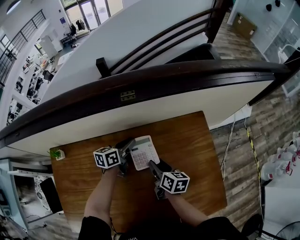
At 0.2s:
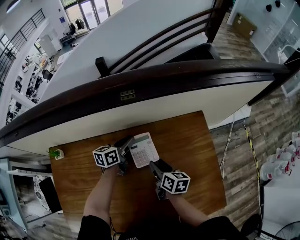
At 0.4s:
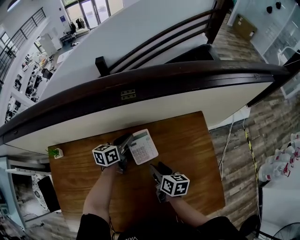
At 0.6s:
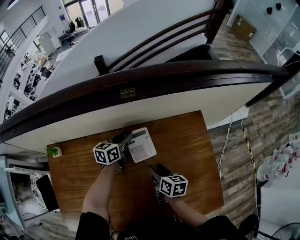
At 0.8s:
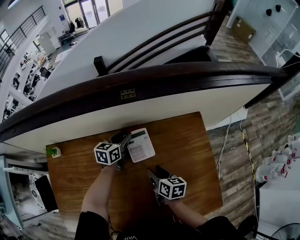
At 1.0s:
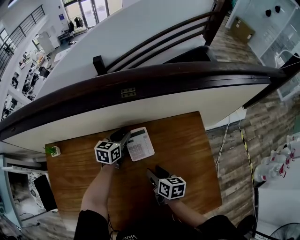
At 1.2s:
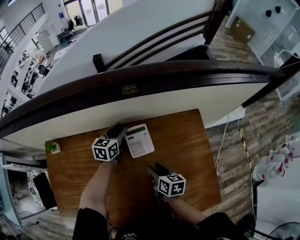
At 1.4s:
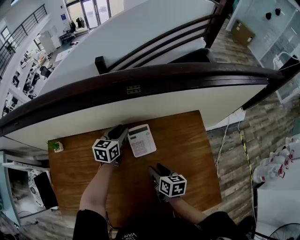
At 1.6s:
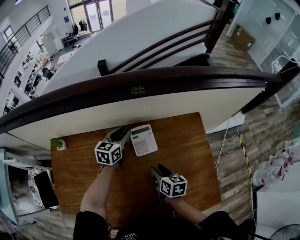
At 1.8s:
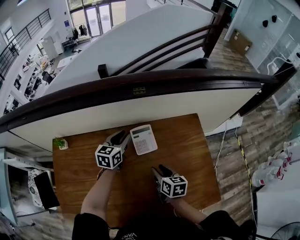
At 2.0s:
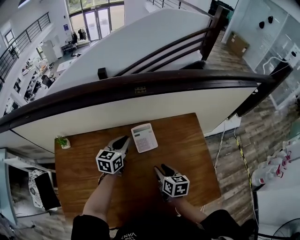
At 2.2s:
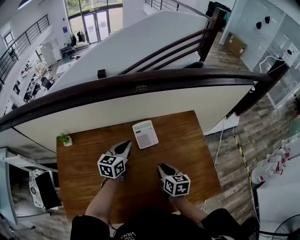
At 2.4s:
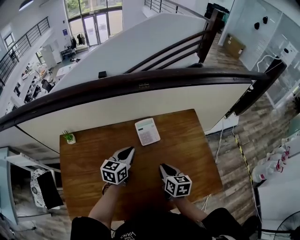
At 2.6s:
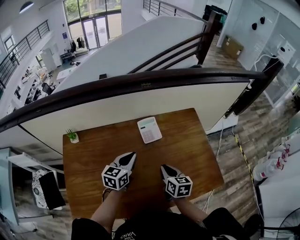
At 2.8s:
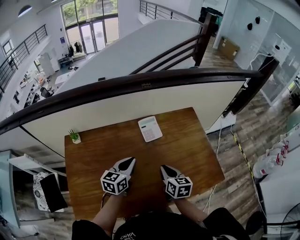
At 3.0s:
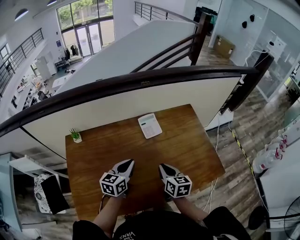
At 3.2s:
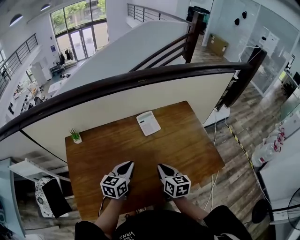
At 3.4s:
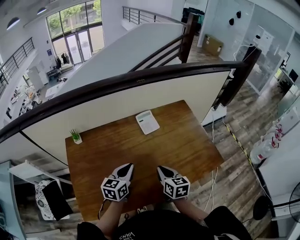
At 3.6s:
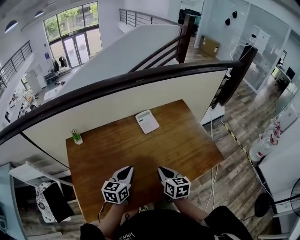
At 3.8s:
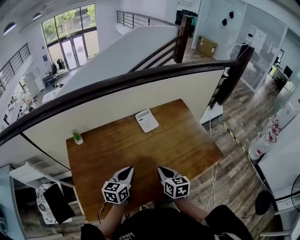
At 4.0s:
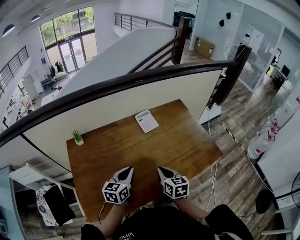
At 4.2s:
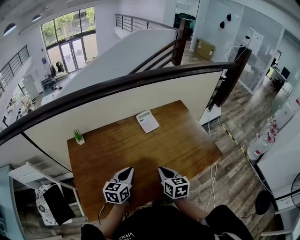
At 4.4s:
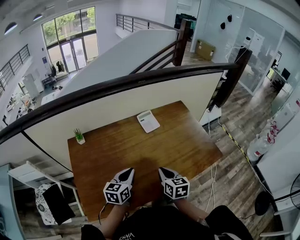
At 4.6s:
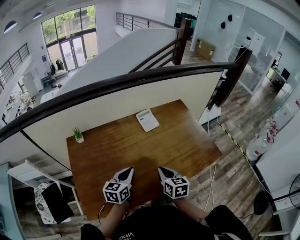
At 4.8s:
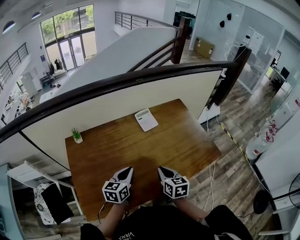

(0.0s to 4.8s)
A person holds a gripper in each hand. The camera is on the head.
0.0s - 1.6s: The left gripper moves upward, approximately 5 cm, and changes its angle by roughly 30 degrees, while the right gripper shifts roughly 5 cm backward.
1.6s - 3.2s: The left gripper heads backward, covering roughly 30 cm, and closes, while the right gripper goes some 20 cm backward and upward, and closes up.
3.2s - 4.8s: Both grippers travel together backward, some 5 cm.

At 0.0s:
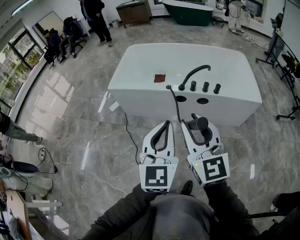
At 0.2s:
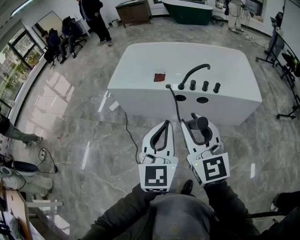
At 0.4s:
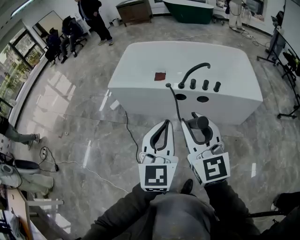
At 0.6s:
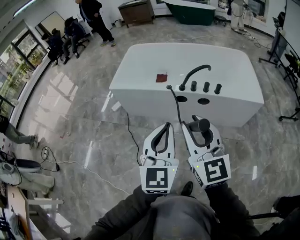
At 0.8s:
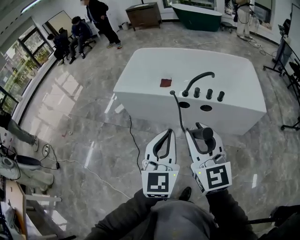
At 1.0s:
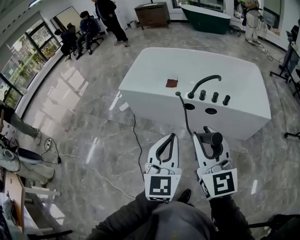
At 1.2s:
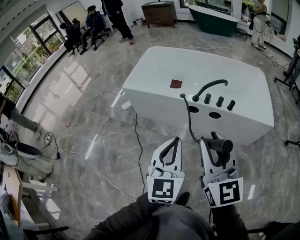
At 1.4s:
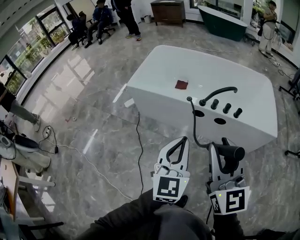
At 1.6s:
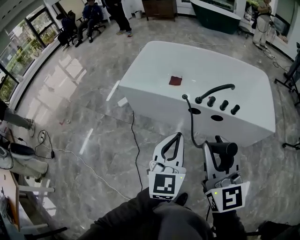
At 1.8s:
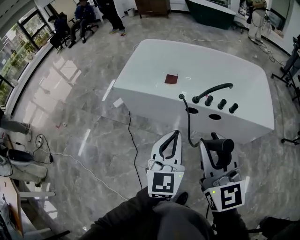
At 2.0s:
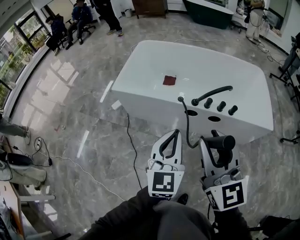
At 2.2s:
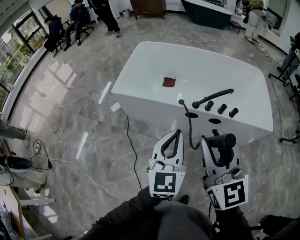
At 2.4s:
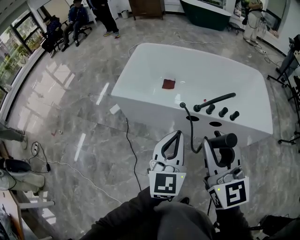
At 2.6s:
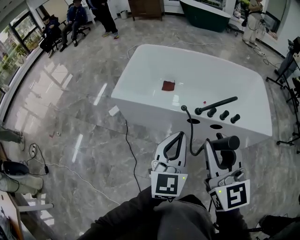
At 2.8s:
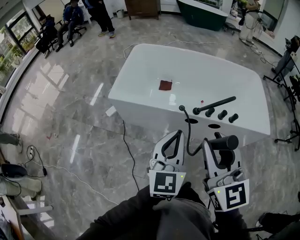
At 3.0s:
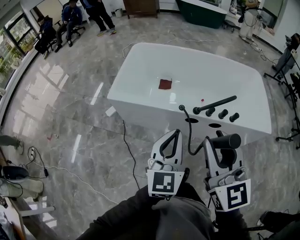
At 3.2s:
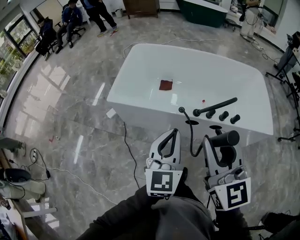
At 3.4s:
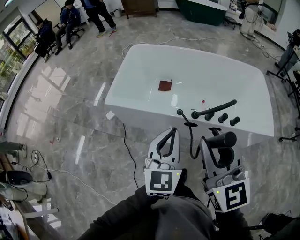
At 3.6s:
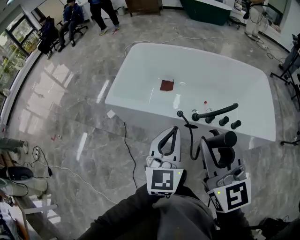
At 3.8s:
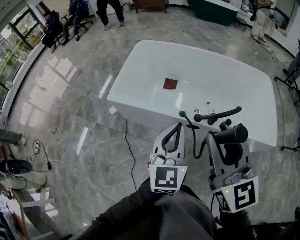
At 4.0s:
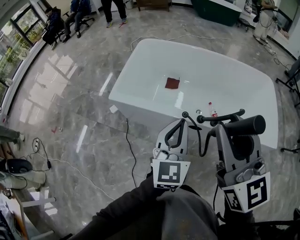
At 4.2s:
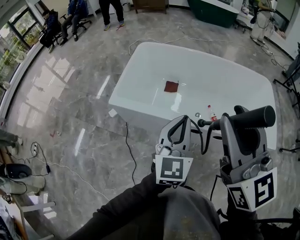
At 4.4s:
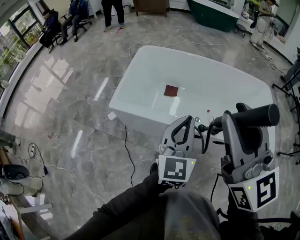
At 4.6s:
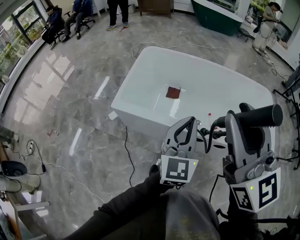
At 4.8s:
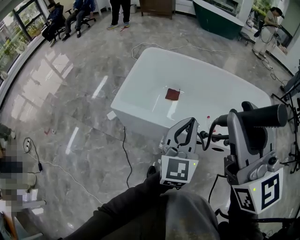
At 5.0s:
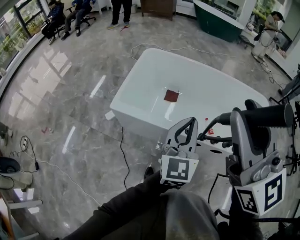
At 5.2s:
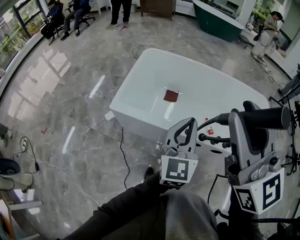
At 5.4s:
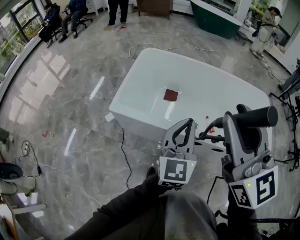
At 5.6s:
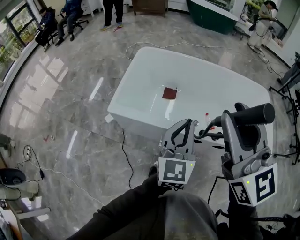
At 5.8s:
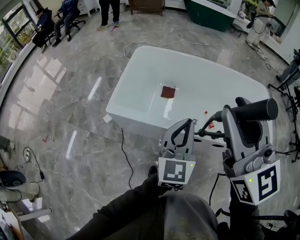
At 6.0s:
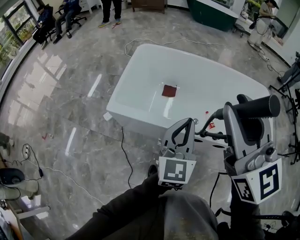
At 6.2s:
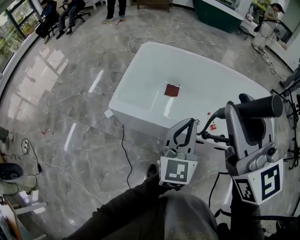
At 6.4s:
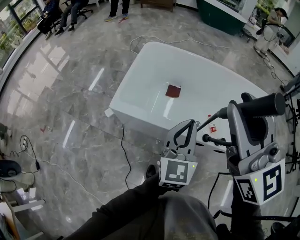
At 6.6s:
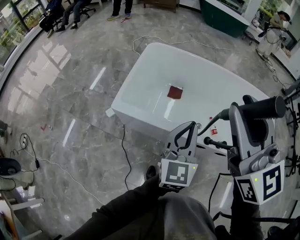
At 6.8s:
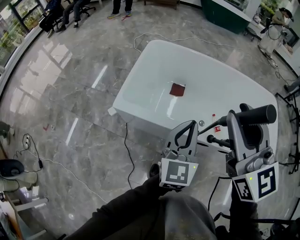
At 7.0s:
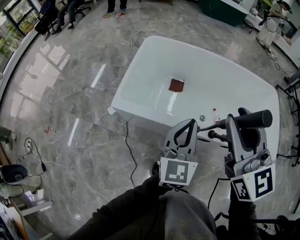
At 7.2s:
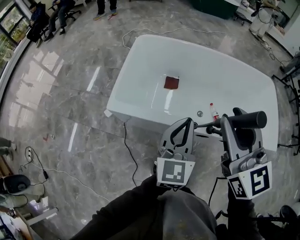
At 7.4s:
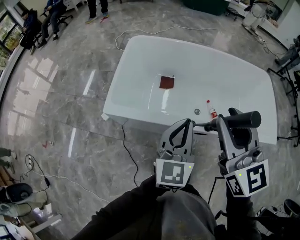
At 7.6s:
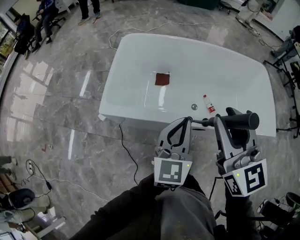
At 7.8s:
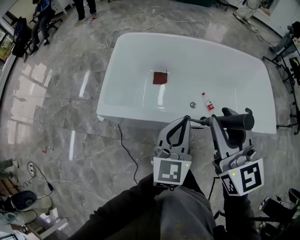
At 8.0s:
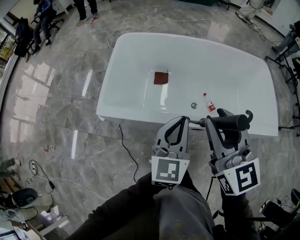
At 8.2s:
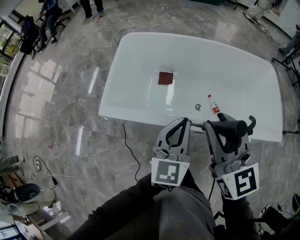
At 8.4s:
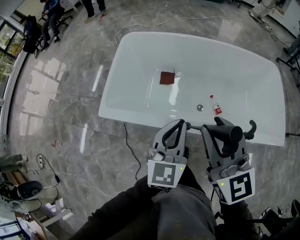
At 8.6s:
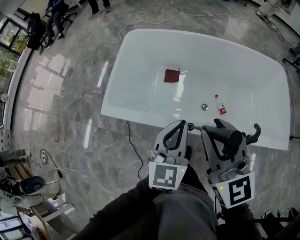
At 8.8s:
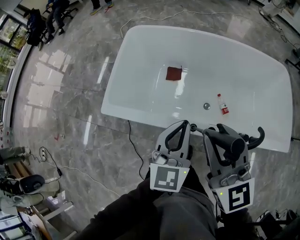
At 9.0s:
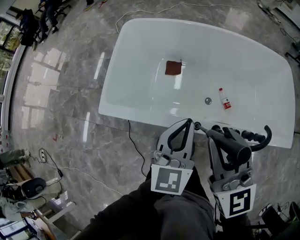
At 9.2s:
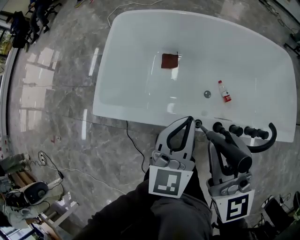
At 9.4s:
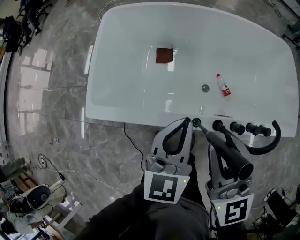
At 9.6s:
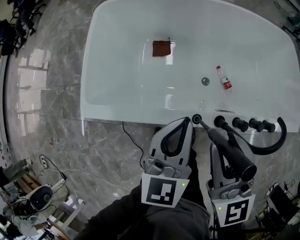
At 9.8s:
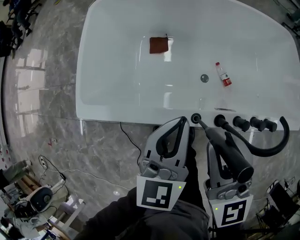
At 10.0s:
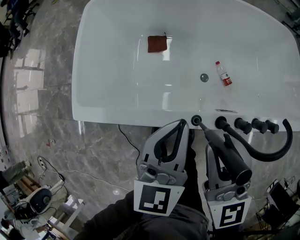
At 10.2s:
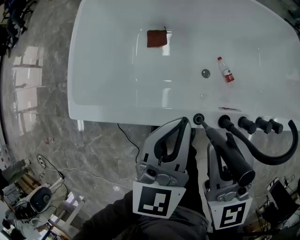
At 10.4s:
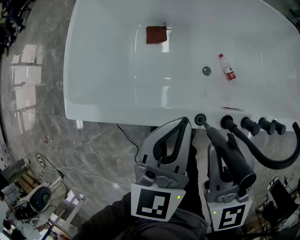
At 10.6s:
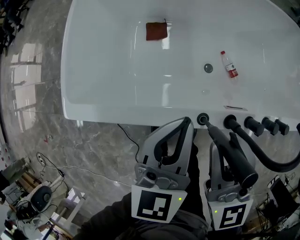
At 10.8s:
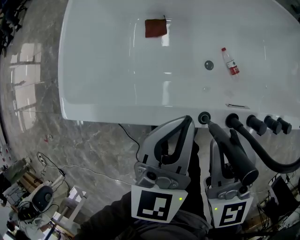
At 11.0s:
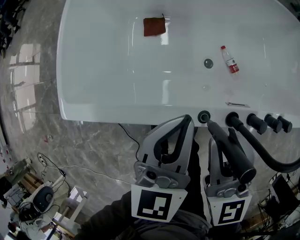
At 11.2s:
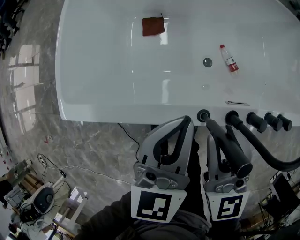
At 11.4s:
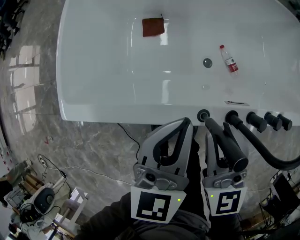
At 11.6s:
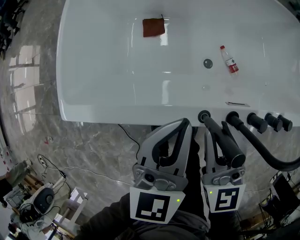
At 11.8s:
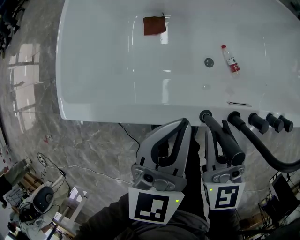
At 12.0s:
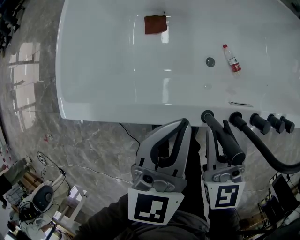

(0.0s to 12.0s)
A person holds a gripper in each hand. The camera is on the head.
0.0s - 1.6s: The left gripper travels forward and downward by about 10 cm, while the right gripper shifts some 5 cm forward.
1.6s - 3.0s: The left gripper shifts some 10 cm forward, while the right gripper travels forward and to the left by approximately 15 cm.
3.0s - 4.4s: The right gripper is displaced forward and upward by roughly 20 cm; the left gripper moves forward, roughly 15 cm.
4.4s - 6.0s: The two grippers go about 5 cm forward.
6.0s - 7.6s: The right gripper travels downward by approximately 10 cm.
7.6s - 9.0s: The right gripper shifts about 10 cm downward and forward. The left gripper goes roughly 10 cm forward and downward.
9.0s - 10.4s: The two grippers go about 15 cm downward.
10.4s - 12.0s: The right gripper heads downward, covering roughly 10 cm.

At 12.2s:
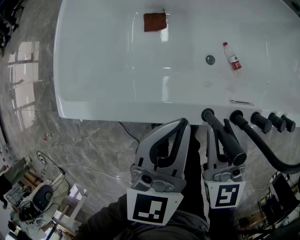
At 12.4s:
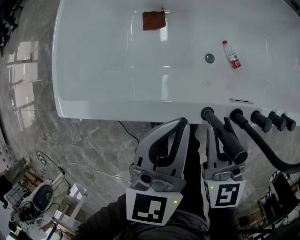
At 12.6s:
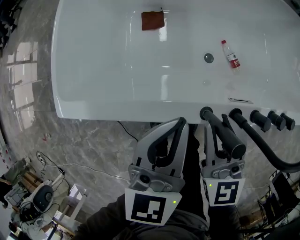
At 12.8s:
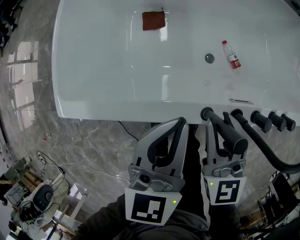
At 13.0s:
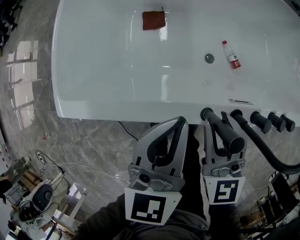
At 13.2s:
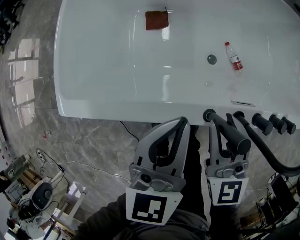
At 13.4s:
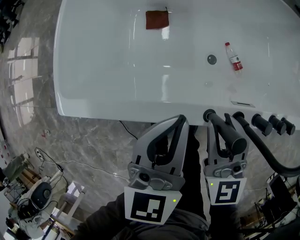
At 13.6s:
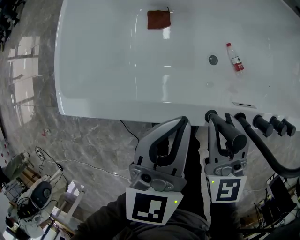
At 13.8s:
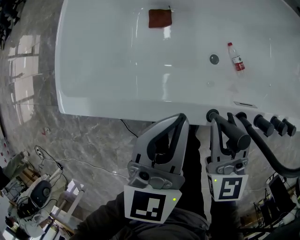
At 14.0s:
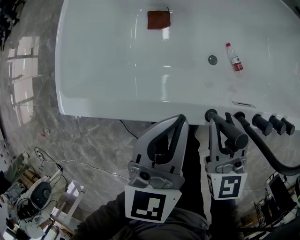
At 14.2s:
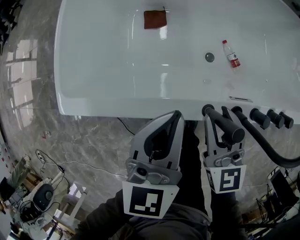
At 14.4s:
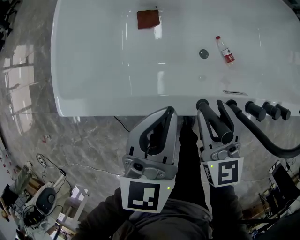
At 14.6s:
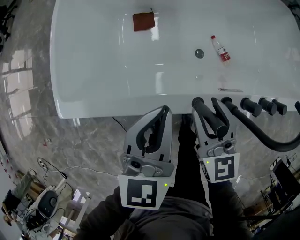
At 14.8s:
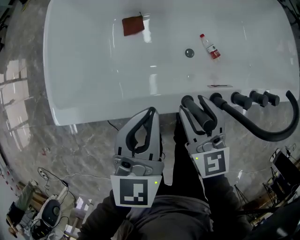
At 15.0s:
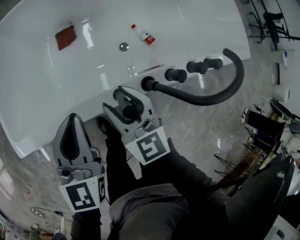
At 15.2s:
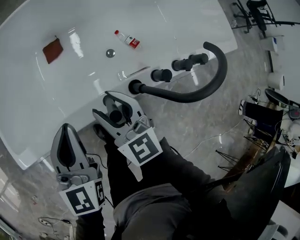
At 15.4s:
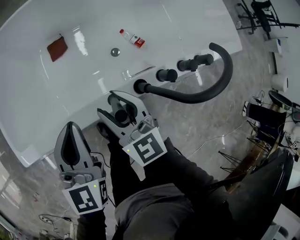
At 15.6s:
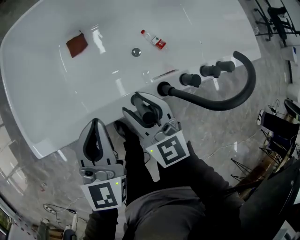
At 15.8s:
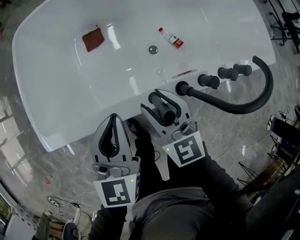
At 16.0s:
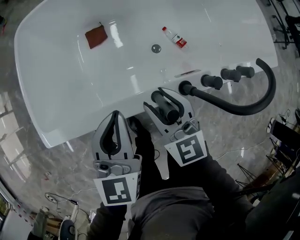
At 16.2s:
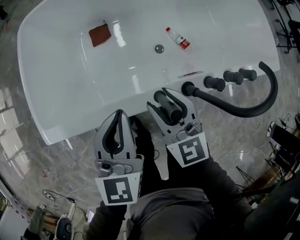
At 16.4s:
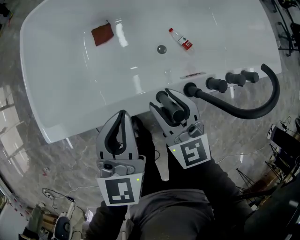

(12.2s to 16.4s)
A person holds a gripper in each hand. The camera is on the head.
12.2s - 16.4s: The grippers move only a little.

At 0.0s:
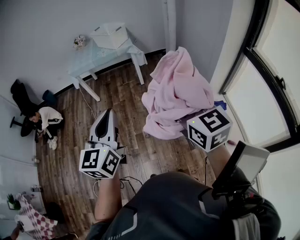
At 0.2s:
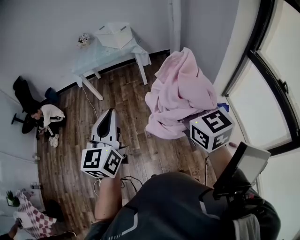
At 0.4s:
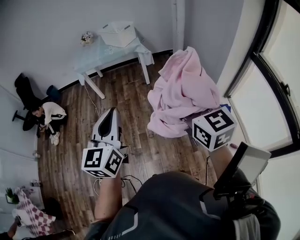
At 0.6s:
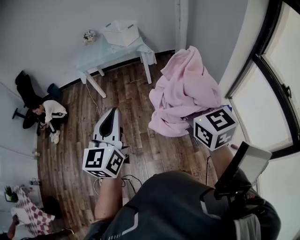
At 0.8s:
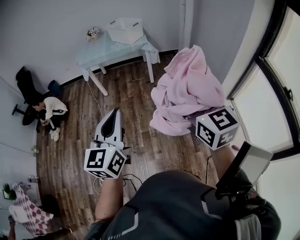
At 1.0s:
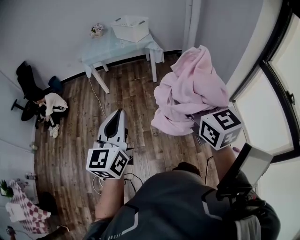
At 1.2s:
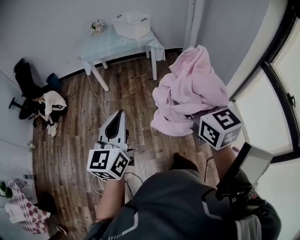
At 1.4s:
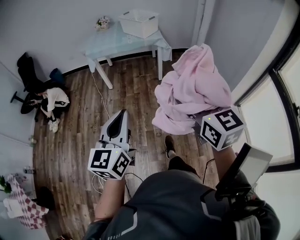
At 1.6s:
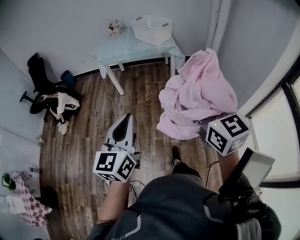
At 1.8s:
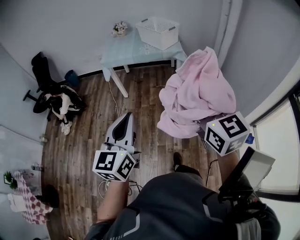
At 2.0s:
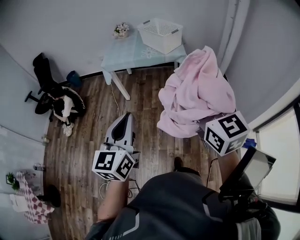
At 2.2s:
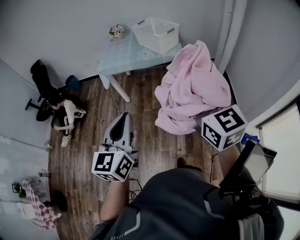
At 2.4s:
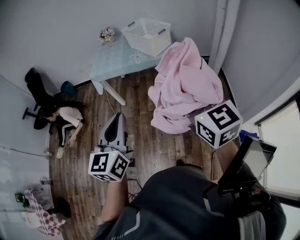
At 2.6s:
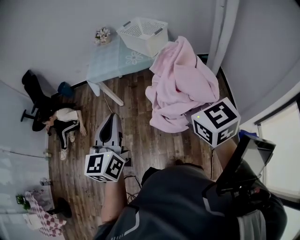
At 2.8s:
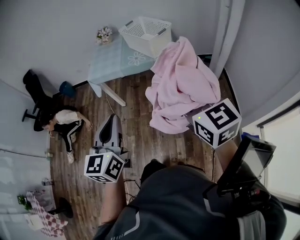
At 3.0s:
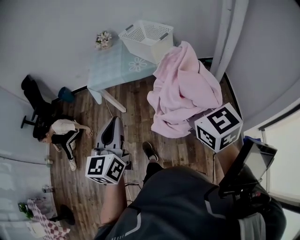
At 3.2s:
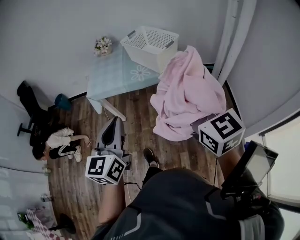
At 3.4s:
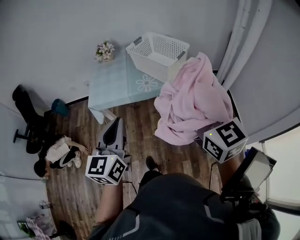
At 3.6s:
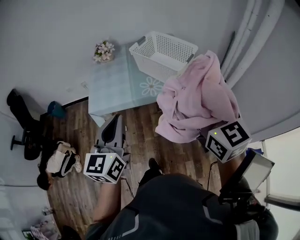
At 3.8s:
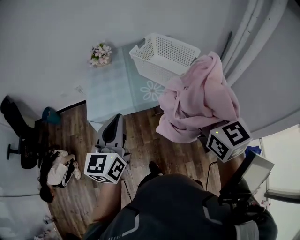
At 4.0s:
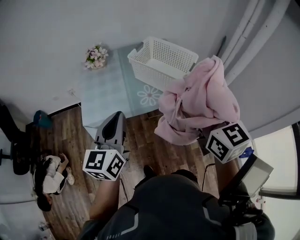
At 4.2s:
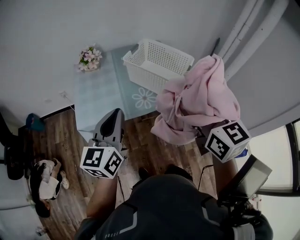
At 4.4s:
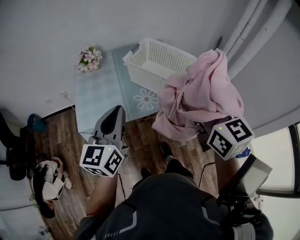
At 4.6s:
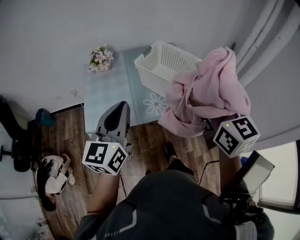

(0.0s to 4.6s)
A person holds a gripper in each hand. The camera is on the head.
0.0s - 1.6s: The left gripper is displaced to the left and forward by some 20 cm; the right gripper is displaced forward and to the left by some 20 cm.
1.6s - 3.0s: The two grippers go some 35 cm forward.
3.0s - 4.6s: The pair of grippers is taken forward, roughly 40 cm.
